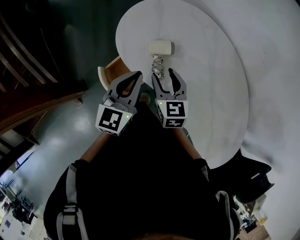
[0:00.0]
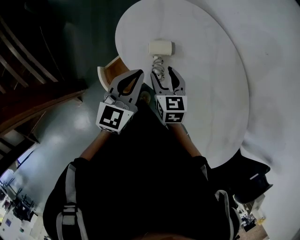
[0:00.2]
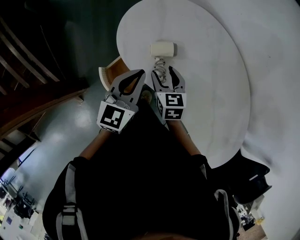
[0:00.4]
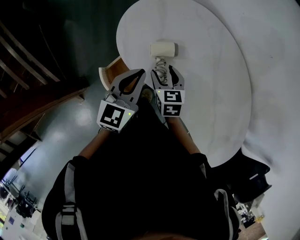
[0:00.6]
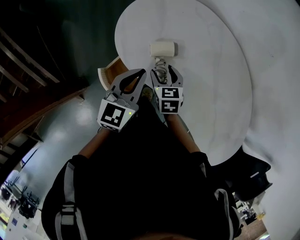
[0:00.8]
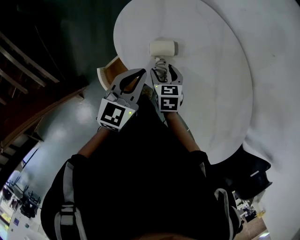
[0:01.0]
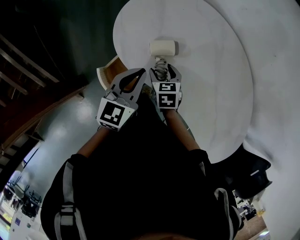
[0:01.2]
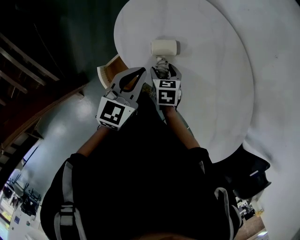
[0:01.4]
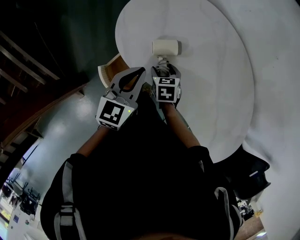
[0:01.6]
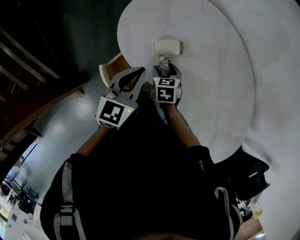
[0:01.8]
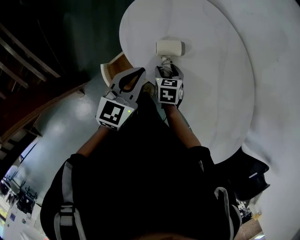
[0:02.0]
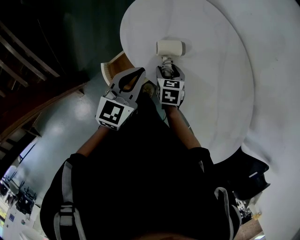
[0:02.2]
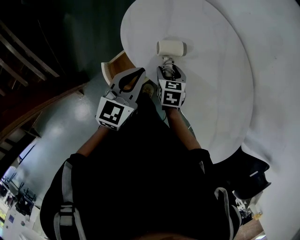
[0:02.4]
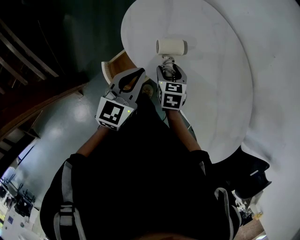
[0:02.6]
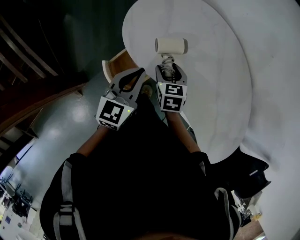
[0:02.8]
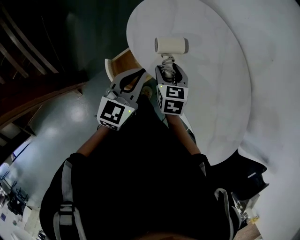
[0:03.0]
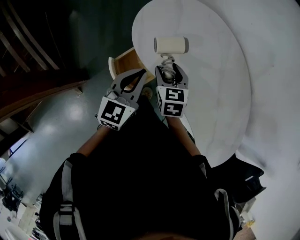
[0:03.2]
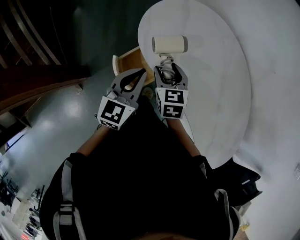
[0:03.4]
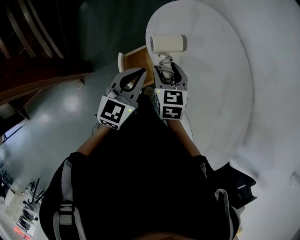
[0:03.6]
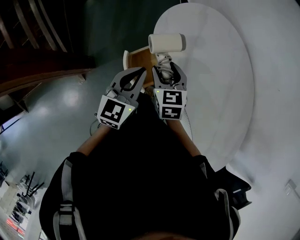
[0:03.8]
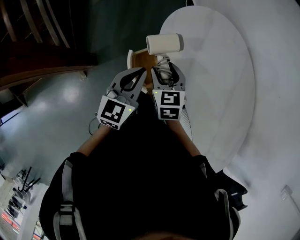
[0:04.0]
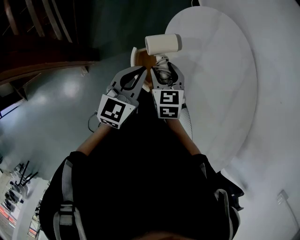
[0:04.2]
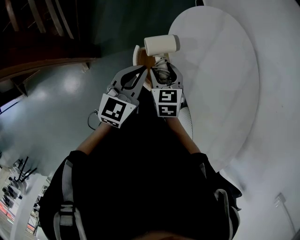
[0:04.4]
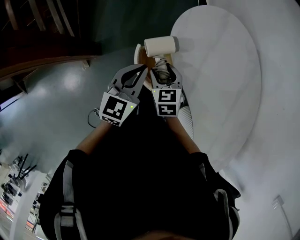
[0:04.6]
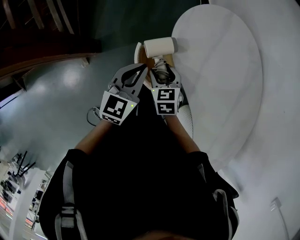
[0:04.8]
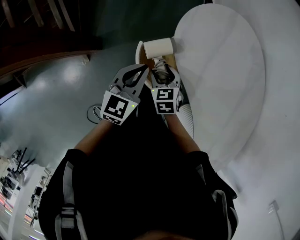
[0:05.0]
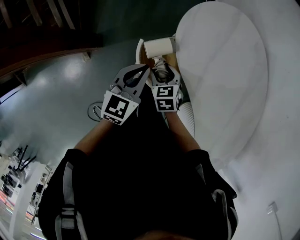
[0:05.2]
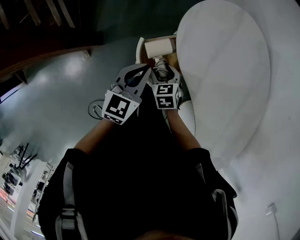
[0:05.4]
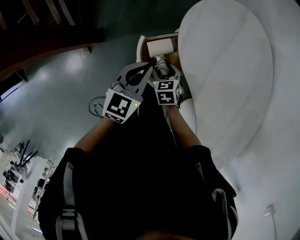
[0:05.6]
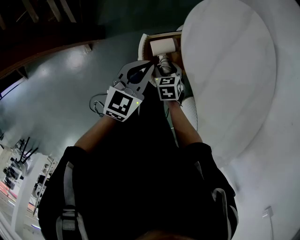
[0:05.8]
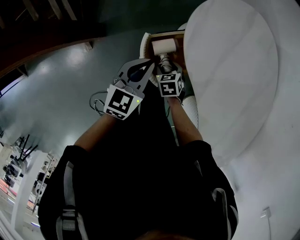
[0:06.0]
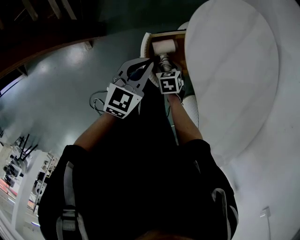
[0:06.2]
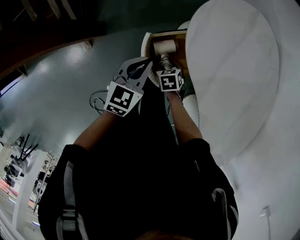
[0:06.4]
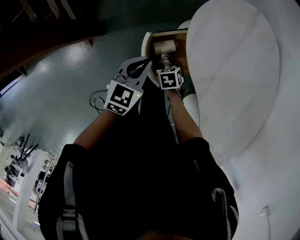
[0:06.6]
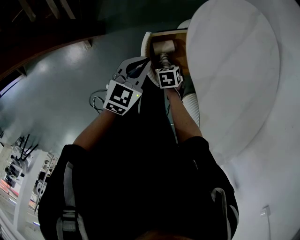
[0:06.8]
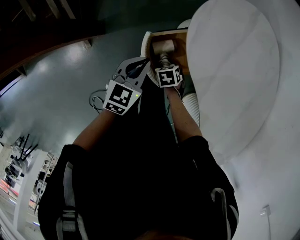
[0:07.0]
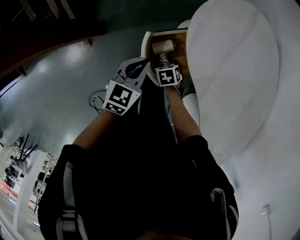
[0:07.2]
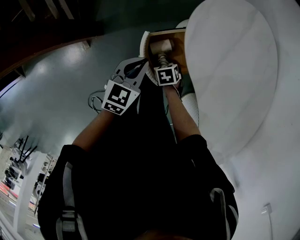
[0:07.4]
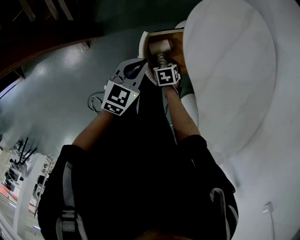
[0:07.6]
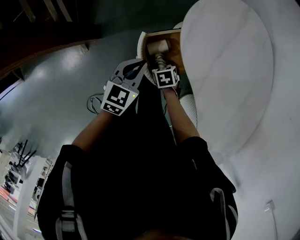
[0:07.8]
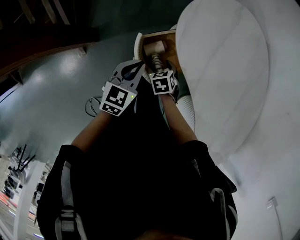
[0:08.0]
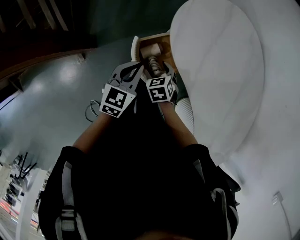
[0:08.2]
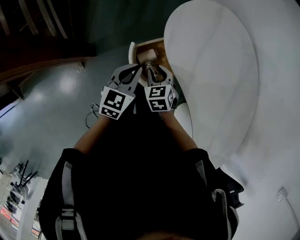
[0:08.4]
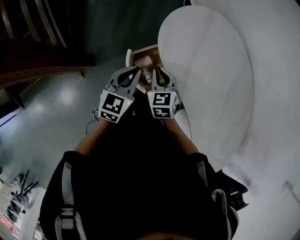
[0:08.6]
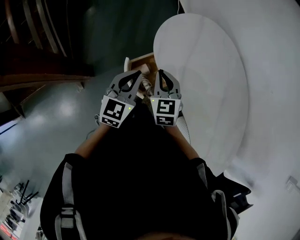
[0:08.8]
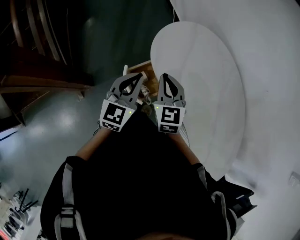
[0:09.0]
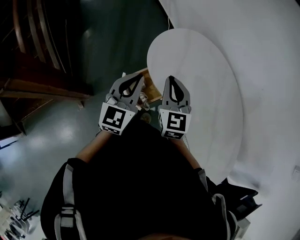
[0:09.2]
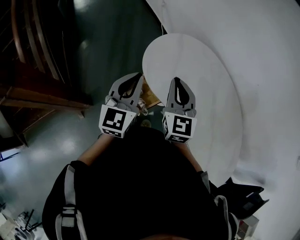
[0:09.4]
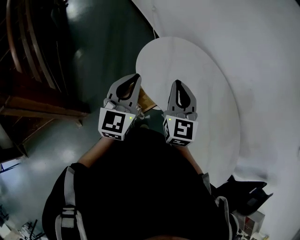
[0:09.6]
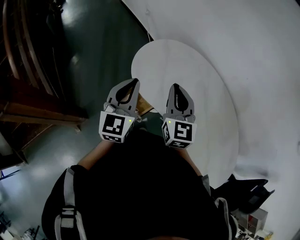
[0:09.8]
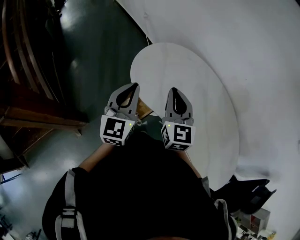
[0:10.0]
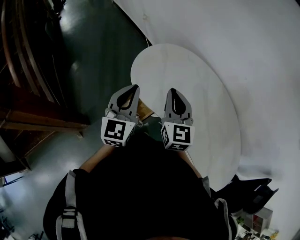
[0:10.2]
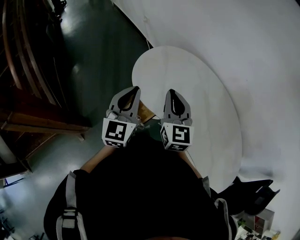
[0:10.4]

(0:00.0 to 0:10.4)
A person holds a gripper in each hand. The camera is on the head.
0:00.0 - 0:01.4: The right gripper travels downward by about 15 cm, and changes its angle by roughly 30 degrees; the left gripper ends up roughly 5 cm from where it was.
0:01.4 - 0:03.0: The left gripper travels backward by some 5 cm; the right gripper is displaced upward by roughly 10 cm.
0:03.0 - 0:04.4: Both grippers move to the left, roughly 15 cm. The right gripper changes its angle by roughly 30 degrees.
0:04.4 - 0:06.0: The left gripper goes about 10 cm downward. The right gripper goes approximately 20 cm downward, and turns by some 30 degrees.
0:06.0 - 0:07.4: The grippers stay close to where they were, moving slightly.
0:07.4 - 0:09.0: The right gripper heads upward, covering about 35 cm, points its fingers about 50 degrees further upward, and closes its fingers. The left gripper heads upward, covering some 20 cm, and swivels approximately 30 degrees.
0:09.0 - 0:10.4: The left gripper shifts roughly 10 cm upward. The right gripper goes approximately 15 cm upward and to the right, and swivels approximately 20 degrees.

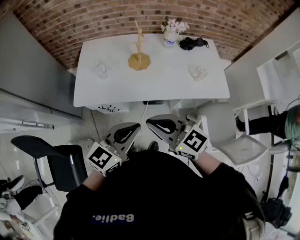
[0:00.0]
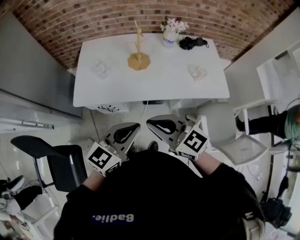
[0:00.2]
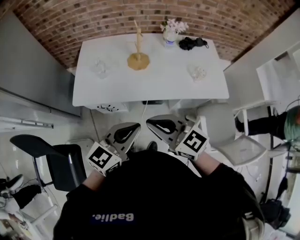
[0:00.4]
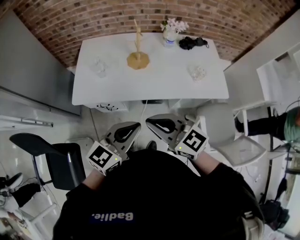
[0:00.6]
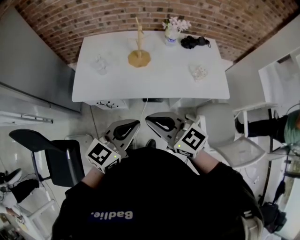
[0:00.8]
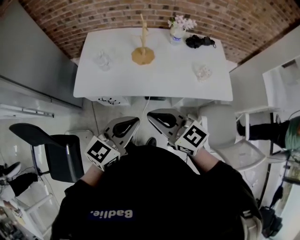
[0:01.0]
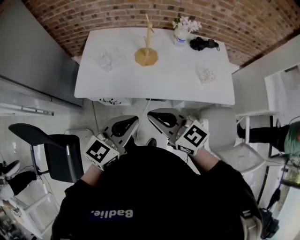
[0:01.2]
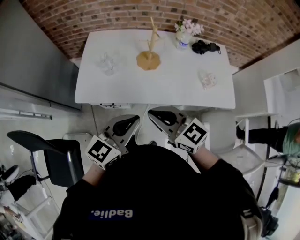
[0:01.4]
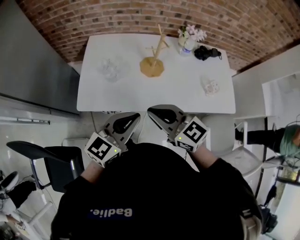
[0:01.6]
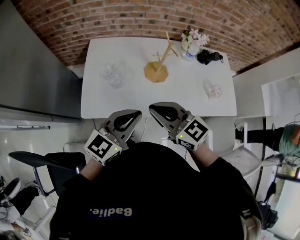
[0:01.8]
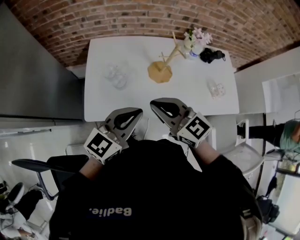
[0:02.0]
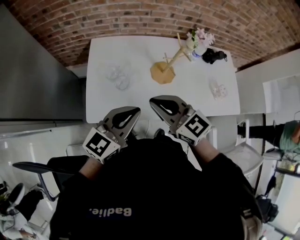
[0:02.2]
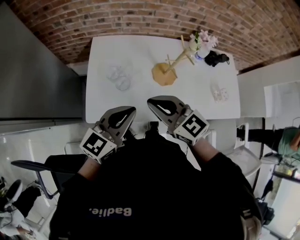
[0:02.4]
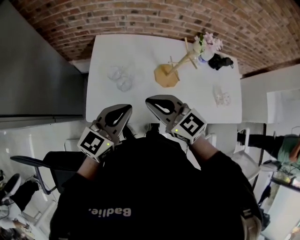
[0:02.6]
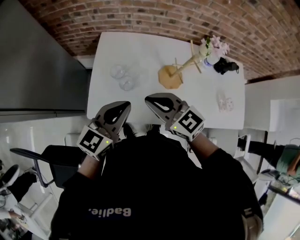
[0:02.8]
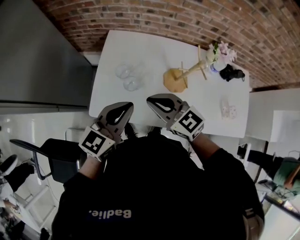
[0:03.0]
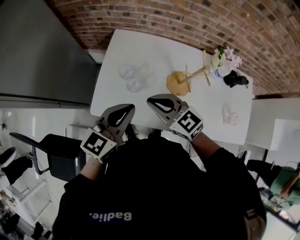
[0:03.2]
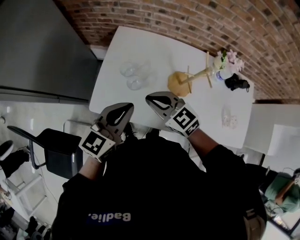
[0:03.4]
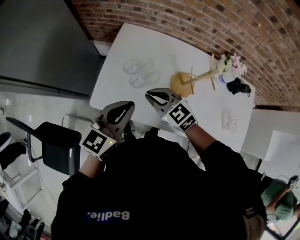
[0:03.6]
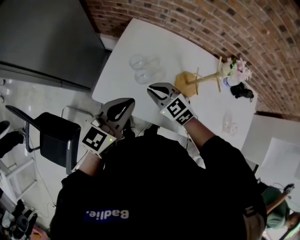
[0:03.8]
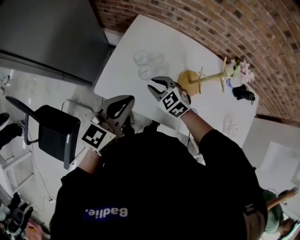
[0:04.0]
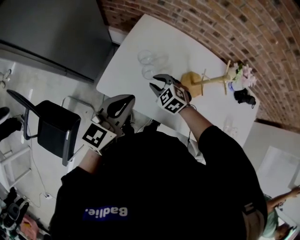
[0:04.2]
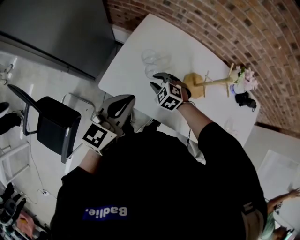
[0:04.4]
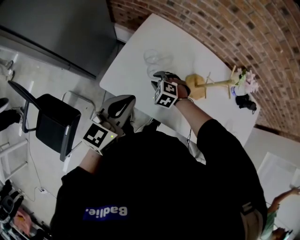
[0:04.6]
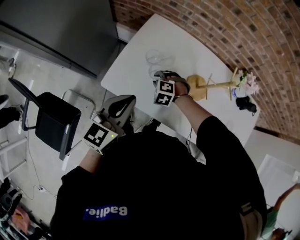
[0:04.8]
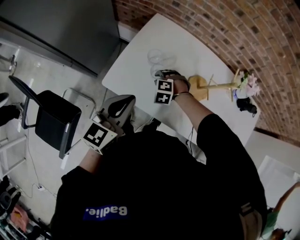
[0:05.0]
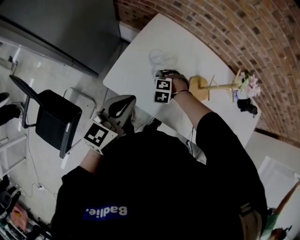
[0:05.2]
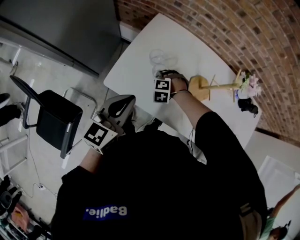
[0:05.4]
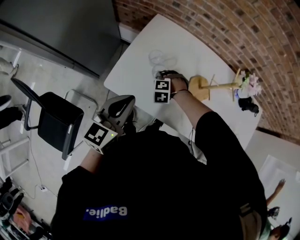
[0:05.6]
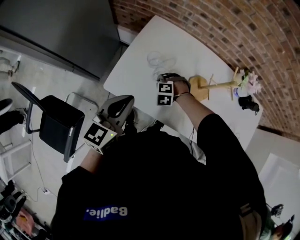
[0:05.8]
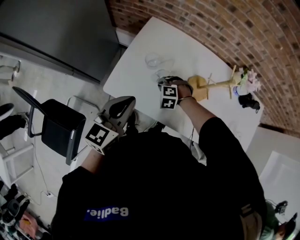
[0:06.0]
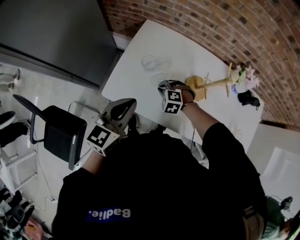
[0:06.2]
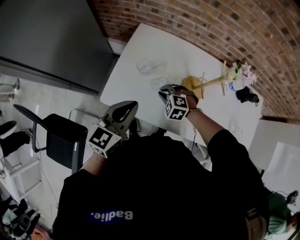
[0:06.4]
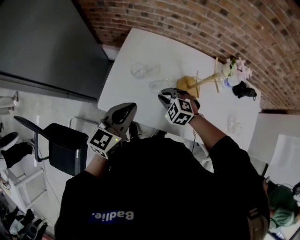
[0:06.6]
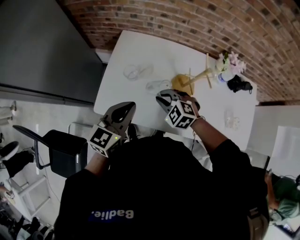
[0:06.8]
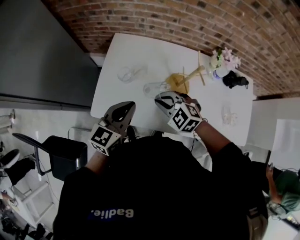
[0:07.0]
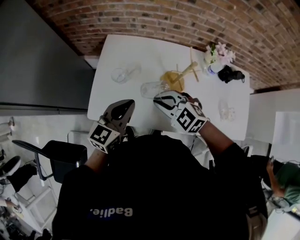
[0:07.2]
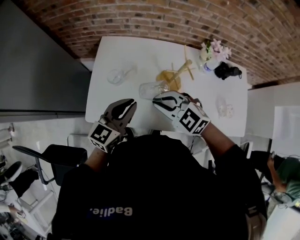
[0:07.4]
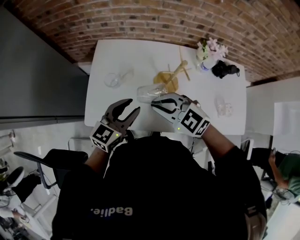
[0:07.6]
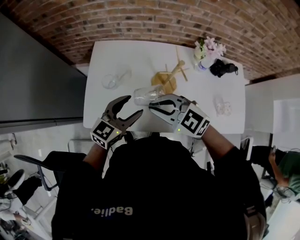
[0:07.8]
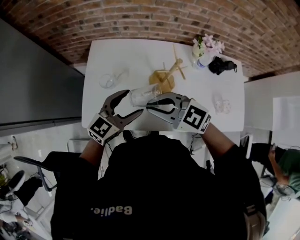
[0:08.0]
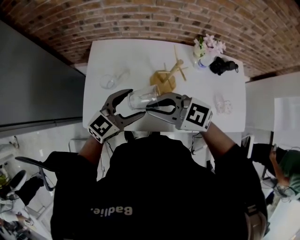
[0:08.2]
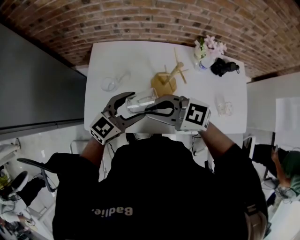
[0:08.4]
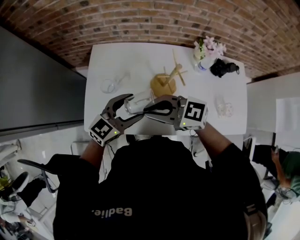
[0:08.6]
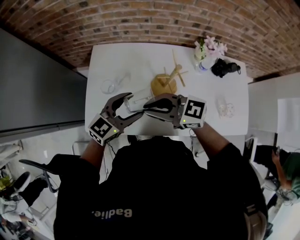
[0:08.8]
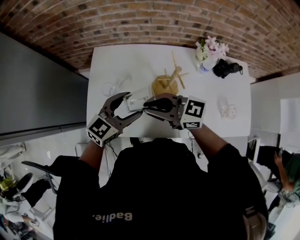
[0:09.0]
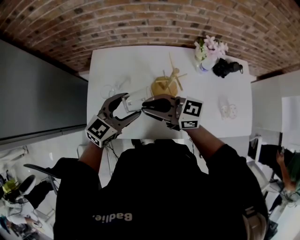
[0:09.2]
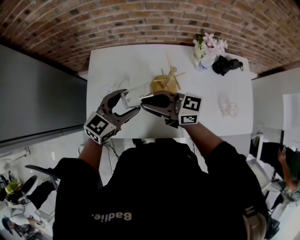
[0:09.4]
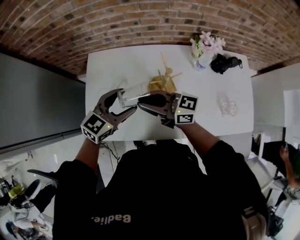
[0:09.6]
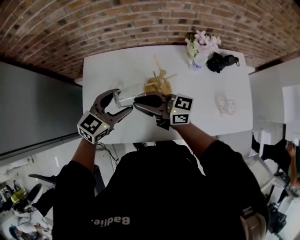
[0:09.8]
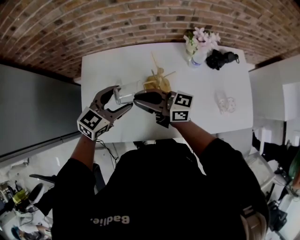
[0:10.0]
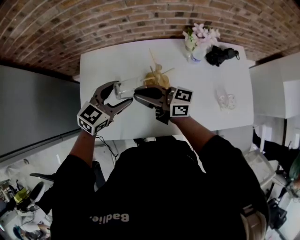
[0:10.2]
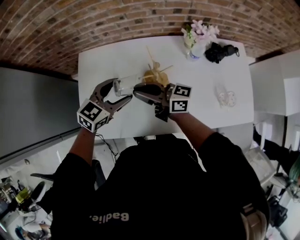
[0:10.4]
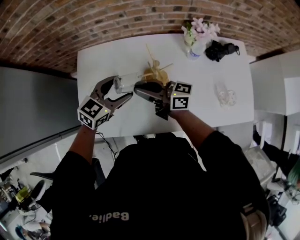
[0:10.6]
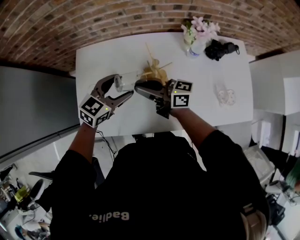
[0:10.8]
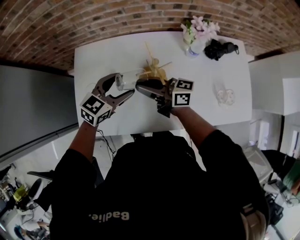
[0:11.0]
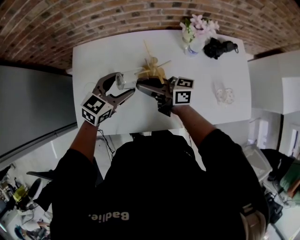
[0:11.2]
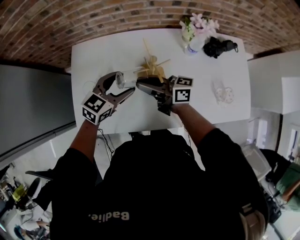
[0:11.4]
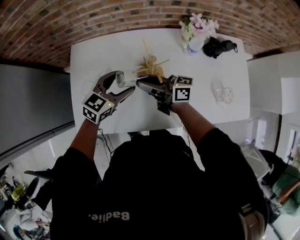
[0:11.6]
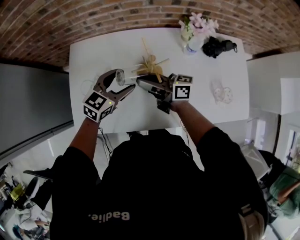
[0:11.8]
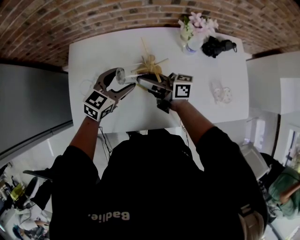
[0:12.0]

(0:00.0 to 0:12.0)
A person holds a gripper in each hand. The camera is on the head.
0:00.0 - 0:01.6: Both grippers travel together forward and to the left, about 15 cm.
0:01.6 - 0:03.0: The grippers both shift forward and to the left by some 20 cm.
0:03.0 - 0:04.4: The right gripper goes roughly 20 cm downward, tilts its fingers some 40 degrees downward, and opens. Meanwhile the left gripper is displaced to the left by about 5 cm, and changes its angle by about 20 degrees.
0:04.4 - 0:06.0: The right gripper moves downward, roughly 5 cm, and rotates some 30 degrees.
0:06.0 - 0:07.6: The left gripper moves to the right, roughly 15 cm, changes its angle by roughly 30 degrees, and opens, while the right gripper goes approximately 25 cm upward and to the right, and angles its fingers upward, by some 40 degrees.
0:07.6 - 0:09.0: The right gripper rotates approximately 40 degrees. The left gripper shifts by about 5 cm, and opens.
0:09.0 - 0:10.4: The right gripper moves approximately 10 cm, and rotates roughly 30 degrees; the left gripper moves roughly 10 cm.
0:10.4 - 0:12.0: The right gripper heads downward, covering approximately 5 cm; the left gripper shifts by about 5 cm.

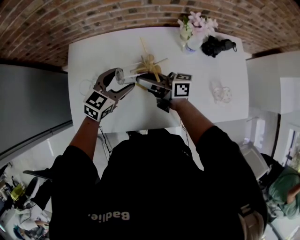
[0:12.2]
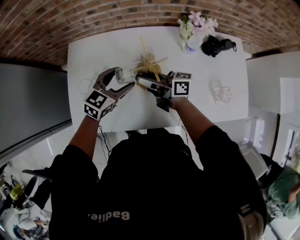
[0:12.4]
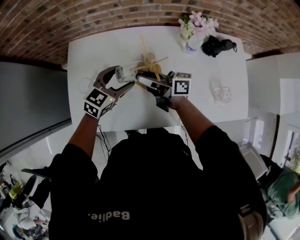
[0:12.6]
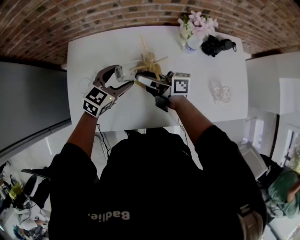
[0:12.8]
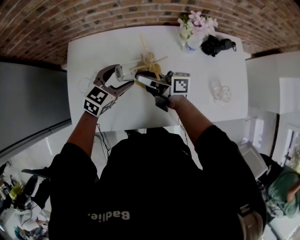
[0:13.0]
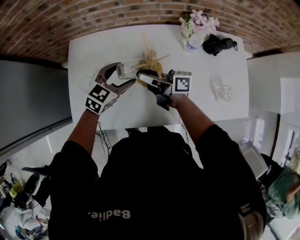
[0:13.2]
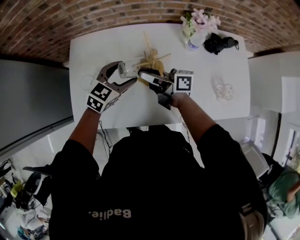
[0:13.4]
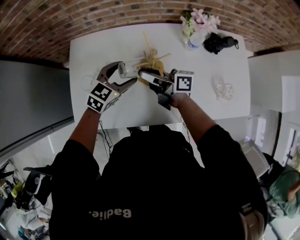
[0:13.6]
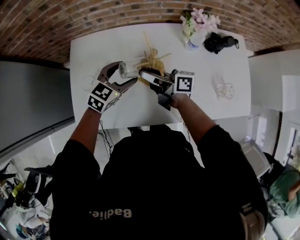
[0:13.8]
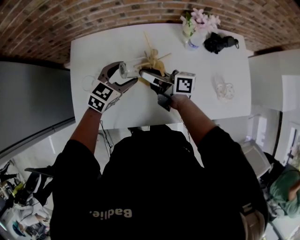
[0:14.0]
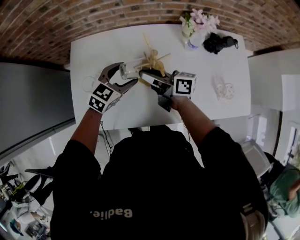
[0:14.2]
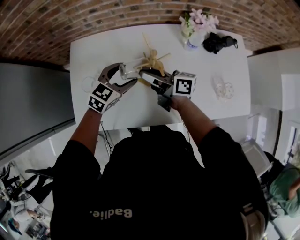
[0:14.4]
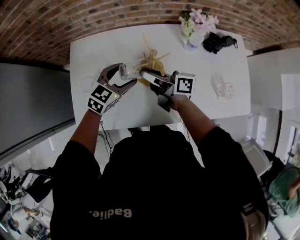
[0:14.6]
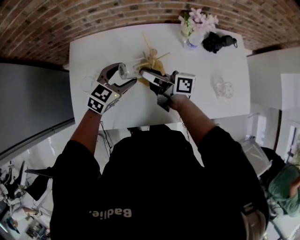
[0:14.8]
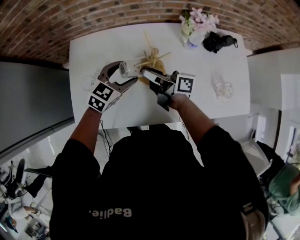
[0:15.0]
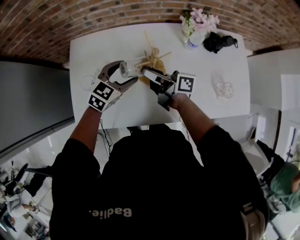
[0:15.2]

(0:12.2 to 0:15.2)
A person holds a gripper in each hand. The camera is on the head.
0:12.2 - 0:15.2: There are only small adjustments of the grippers.
